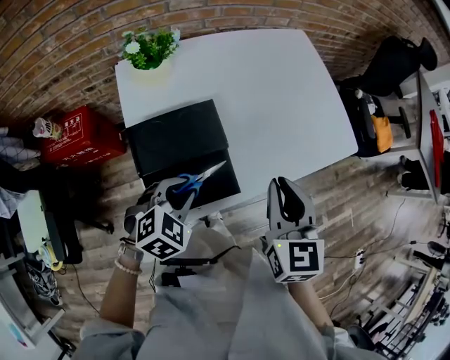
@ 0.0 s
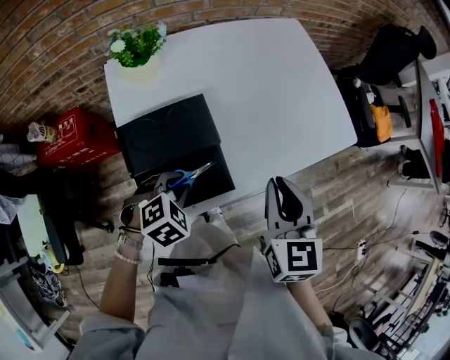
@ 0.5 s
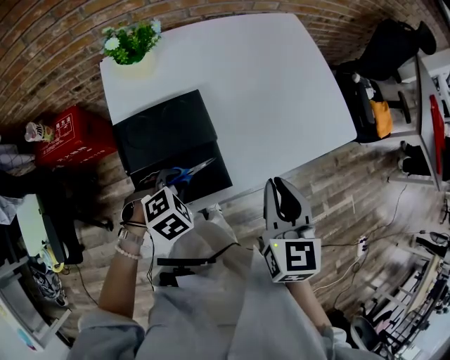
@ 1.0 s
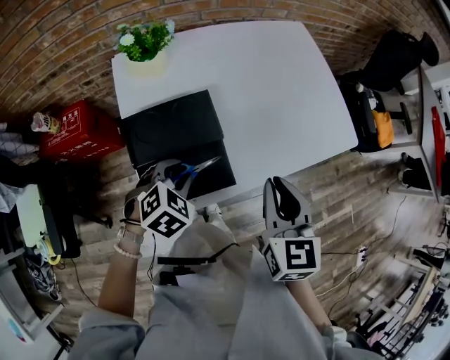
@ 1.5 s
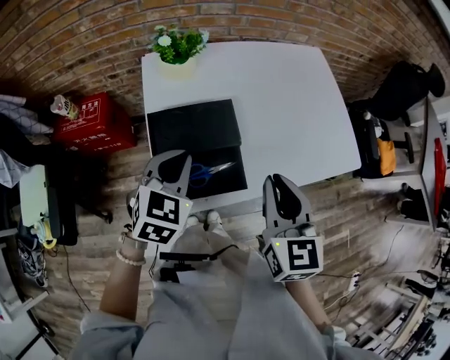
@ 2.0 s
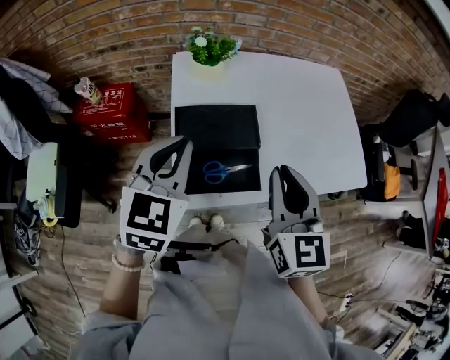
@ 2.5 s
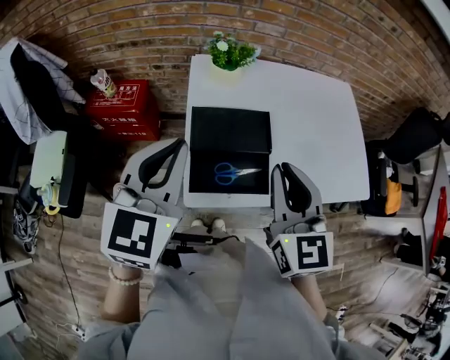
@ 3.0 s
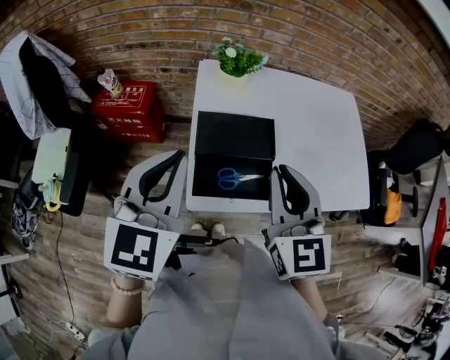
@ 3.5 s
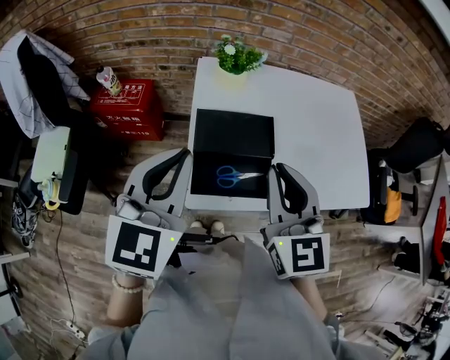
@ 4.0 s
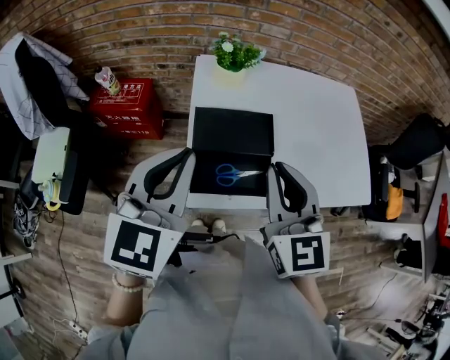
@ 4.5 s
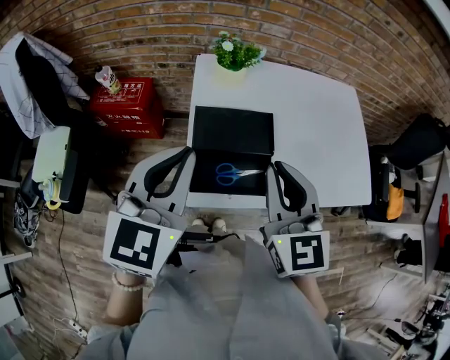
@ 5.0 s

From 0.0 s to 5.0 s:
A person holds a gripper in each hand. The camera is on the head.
From 0.0 s to 2.5 s: The left gripper goes some 20 cm upward, and tilts its fingers roughly 30 degrees upward. The right gripper shifts by roughly 10 cm.
From 2.5 s to 5.0 s: The left gripper shifts approximately 5 cm upward. Meanwhile the right gripper heads to the left, covering approximately 5 cm.

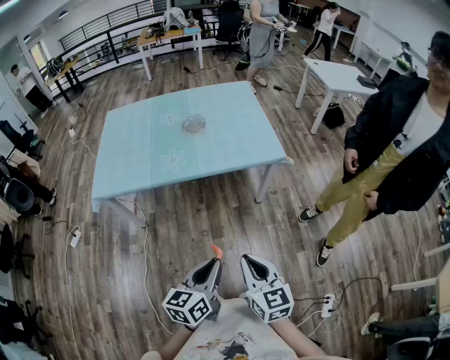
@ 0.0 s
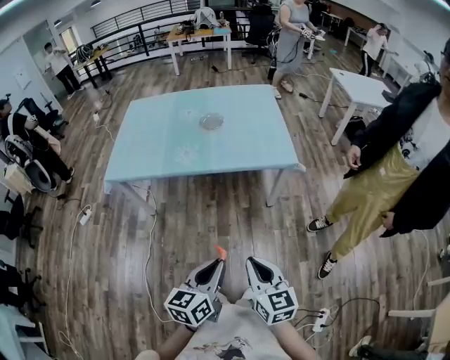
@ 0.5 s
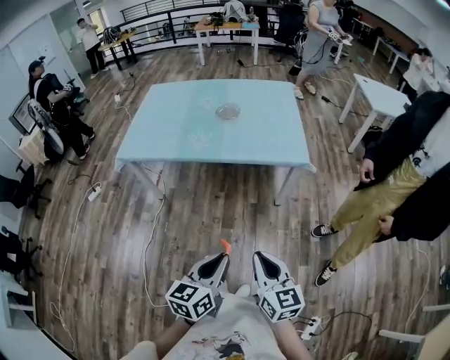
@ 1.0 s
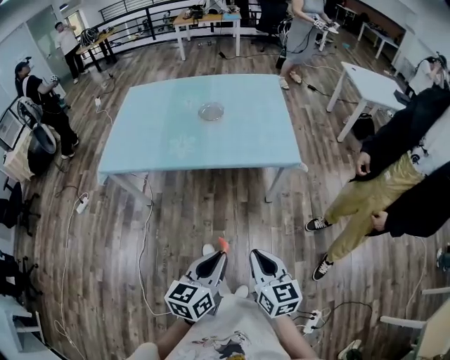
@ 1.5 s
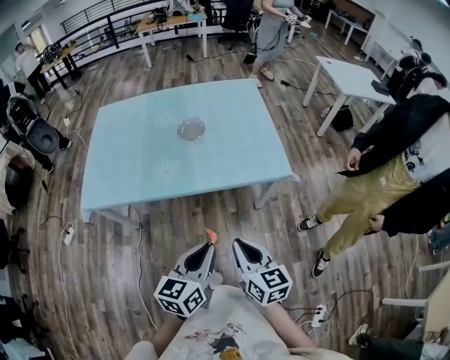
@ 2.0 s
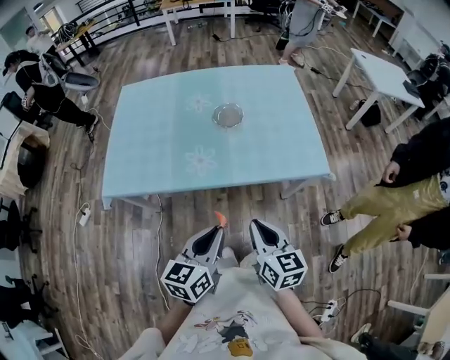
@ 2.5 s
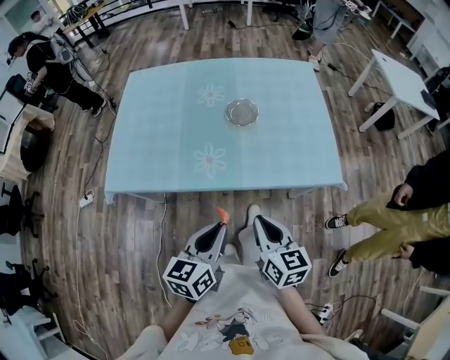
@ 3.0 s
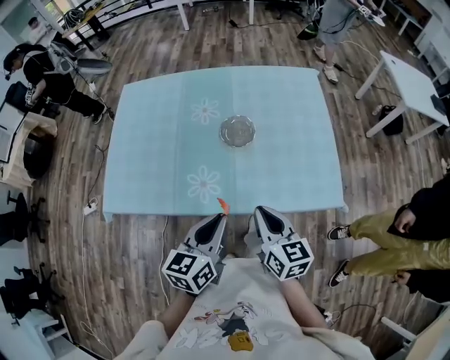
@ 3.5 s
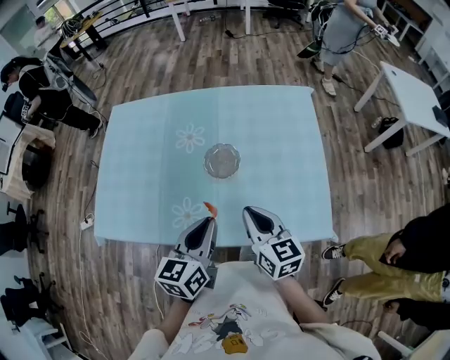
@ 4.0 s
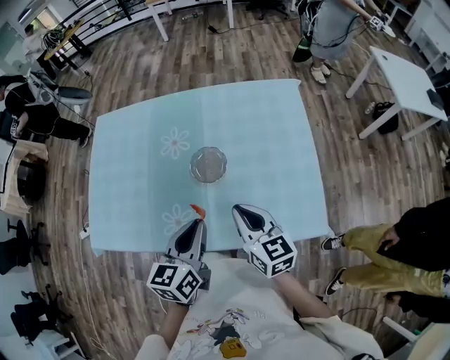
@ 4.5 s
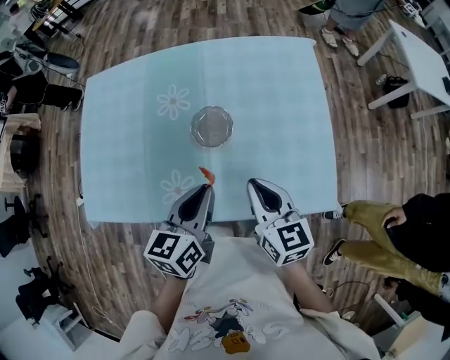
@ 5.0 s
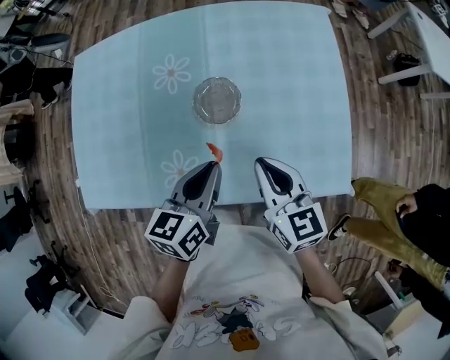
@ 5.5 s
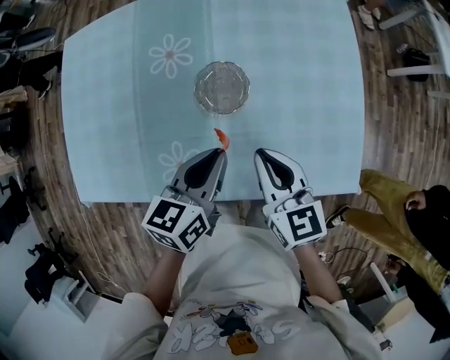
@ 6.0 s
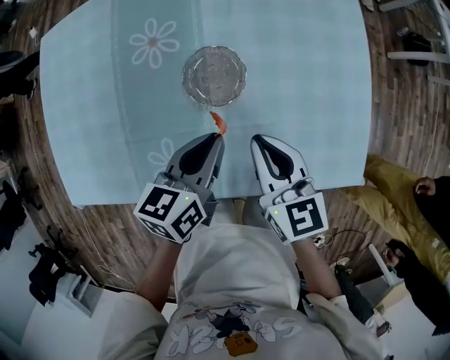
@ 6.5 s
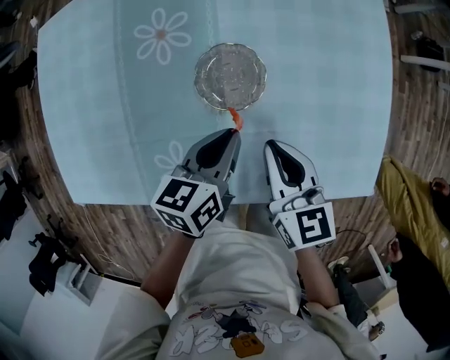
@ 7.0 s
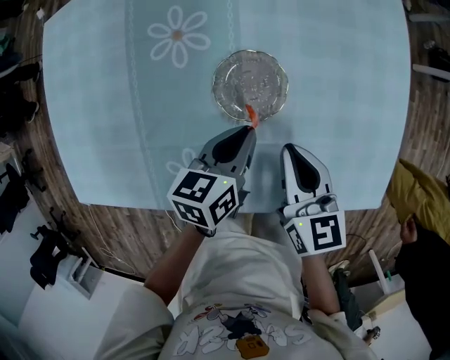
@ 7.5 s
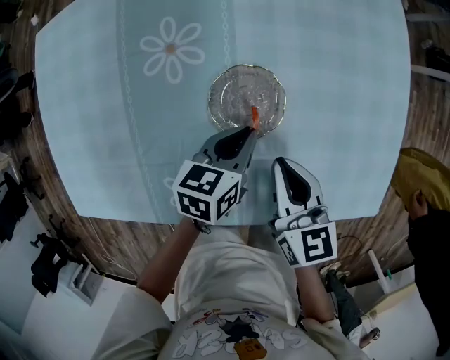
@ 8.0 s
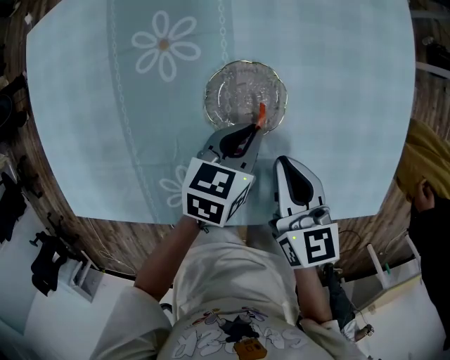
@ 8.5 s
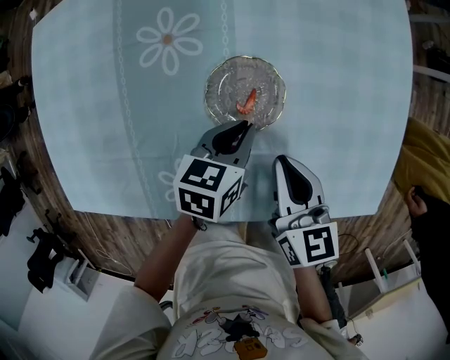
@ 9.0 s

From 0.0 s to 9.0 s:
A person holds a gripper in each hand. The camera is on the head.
From 0.0 s to 2.0 s: Both grippers travel together forward, roughly 20 cm.
From 2.0 s to 4.5 s: Both grippers are carried forward, about 40 cm.
From 4.5 s to 7.0 s: The grippers both shift downward and forward by about 20 cm. The left gripper rotates some 20 degrees.
From 7.0 s to 9.0 s: The left gripper heads downward and forward, covering approximately 10 cm.

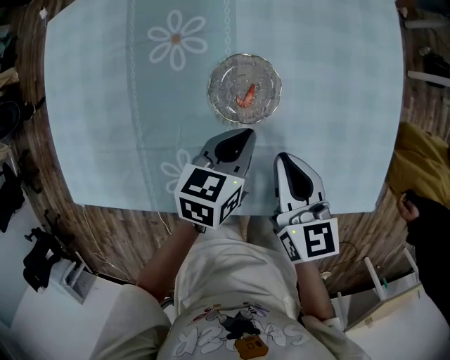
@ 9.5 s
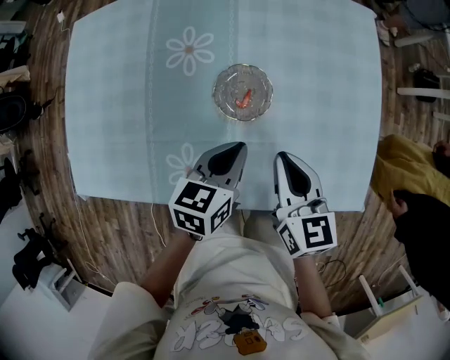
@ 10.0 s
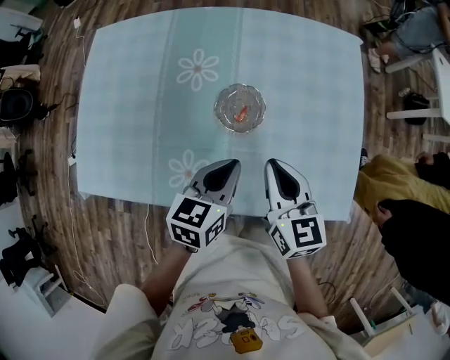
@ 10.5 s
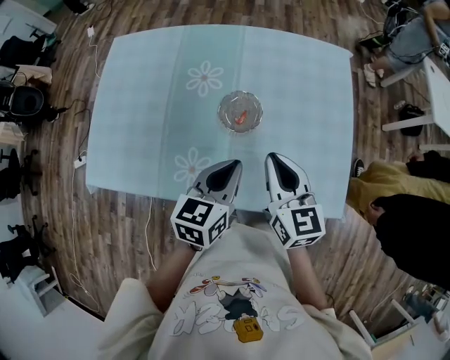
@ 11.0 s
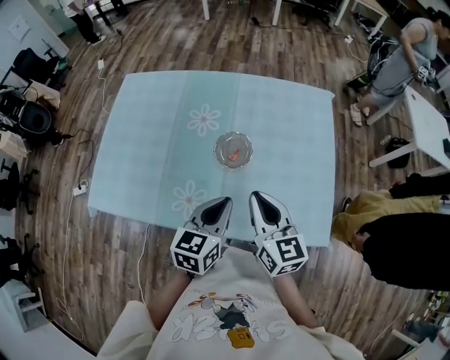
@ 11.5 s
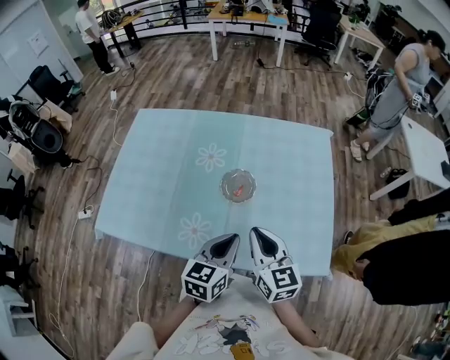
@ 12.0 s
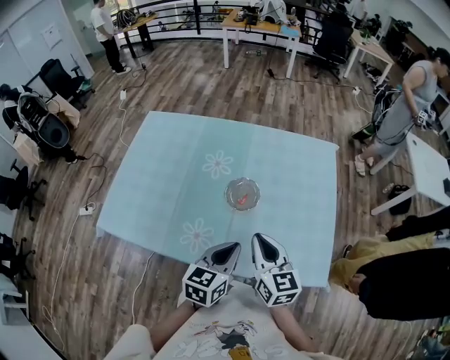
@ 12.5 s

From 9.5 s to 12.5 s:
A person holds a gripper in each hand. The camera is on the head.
From 9.5 s to 11.0 s: The left gripper goes about 25 cm upward and backward, and swivels roughly 20 degrees. Meanwhile the right gripper heads upward, covering some 15 cm.
From 11.0 s to 12.5 s: The grippers both shift backward by roughly 5 cm.

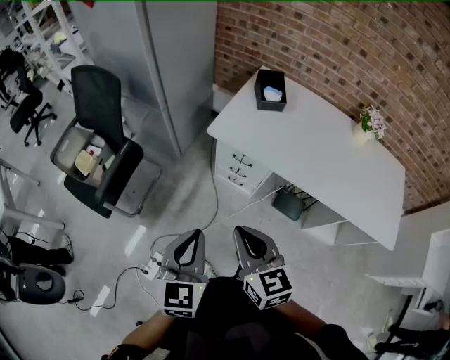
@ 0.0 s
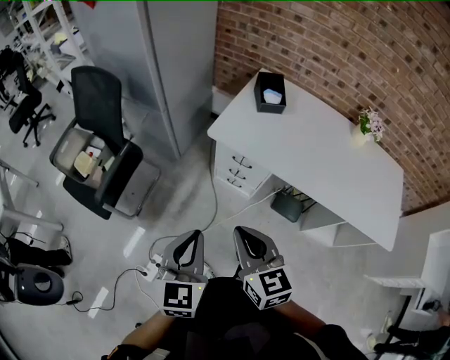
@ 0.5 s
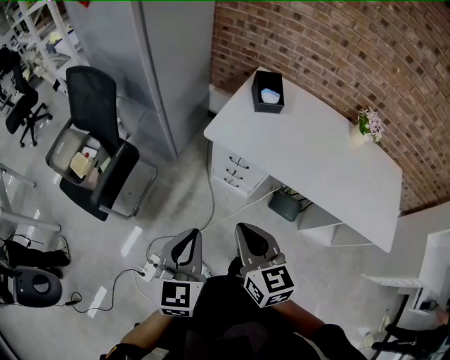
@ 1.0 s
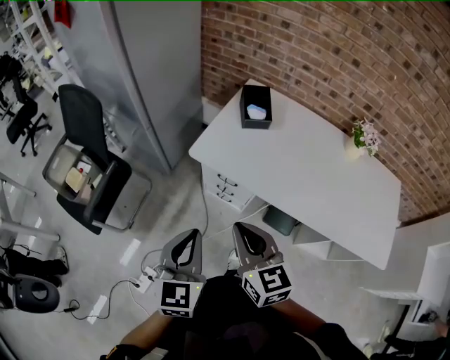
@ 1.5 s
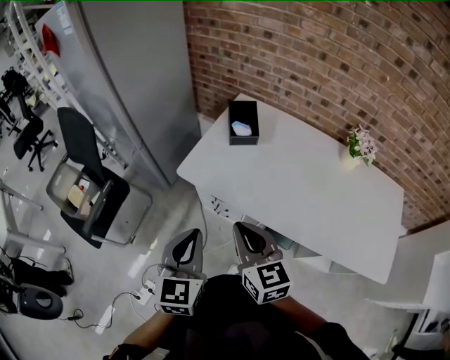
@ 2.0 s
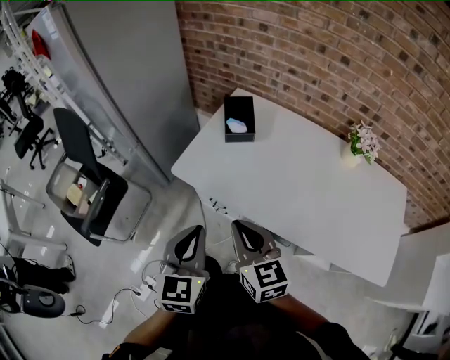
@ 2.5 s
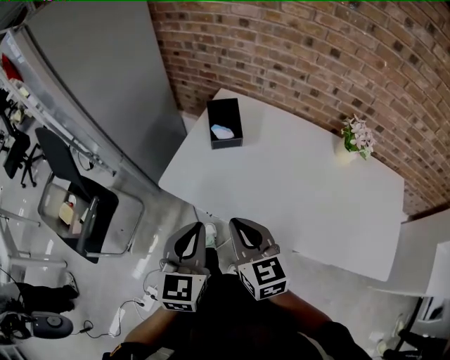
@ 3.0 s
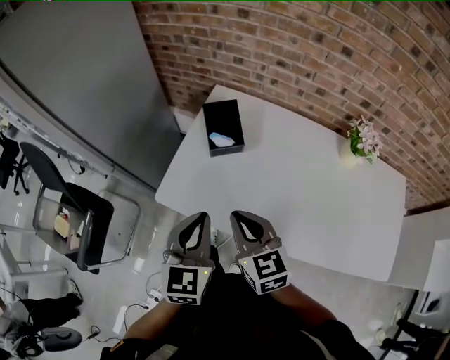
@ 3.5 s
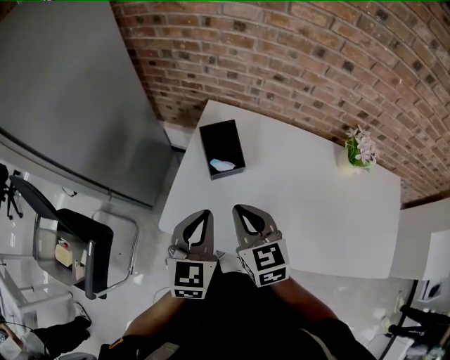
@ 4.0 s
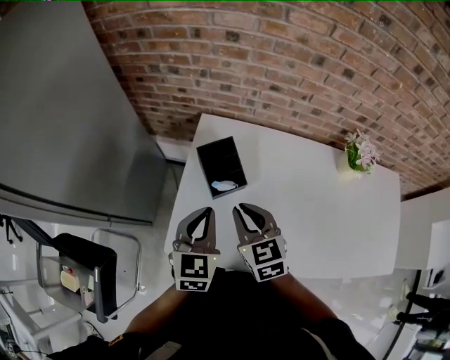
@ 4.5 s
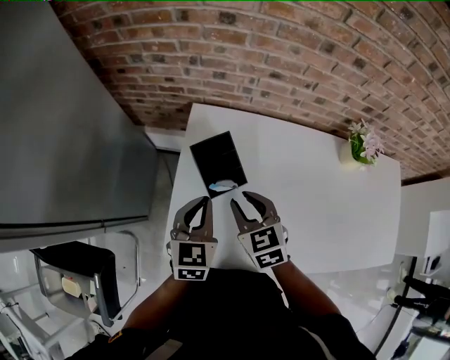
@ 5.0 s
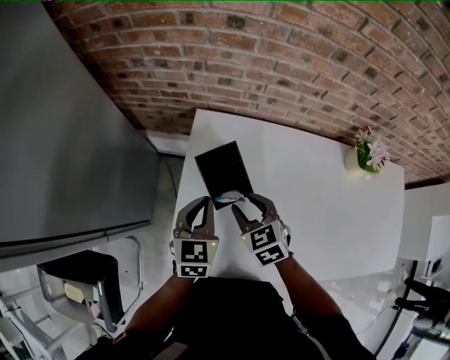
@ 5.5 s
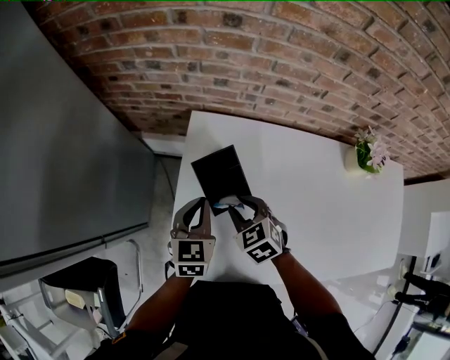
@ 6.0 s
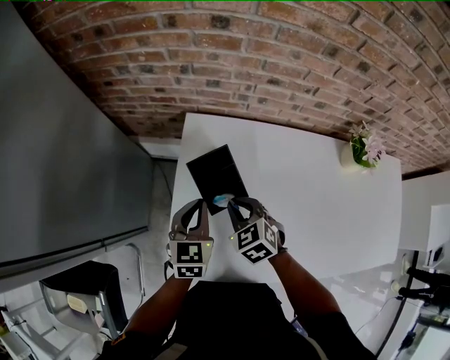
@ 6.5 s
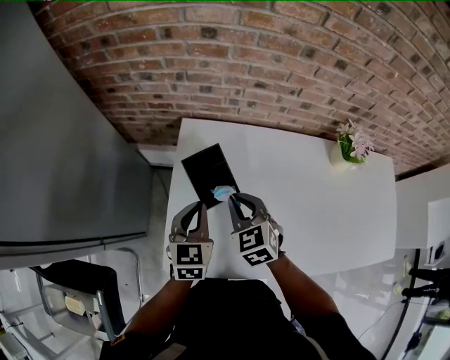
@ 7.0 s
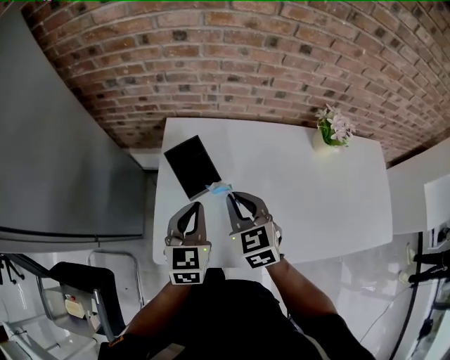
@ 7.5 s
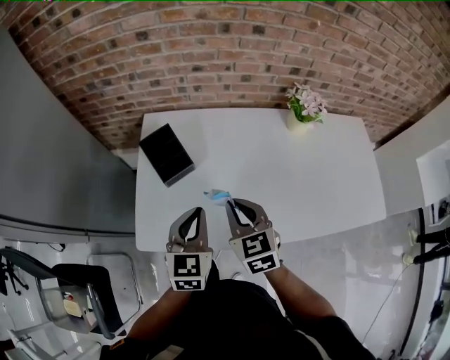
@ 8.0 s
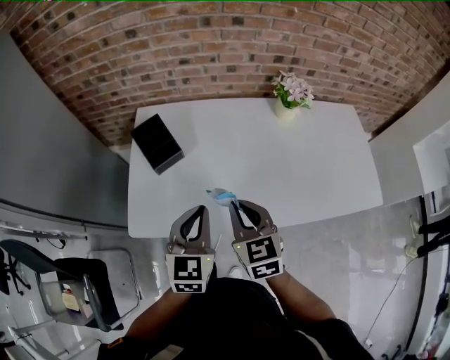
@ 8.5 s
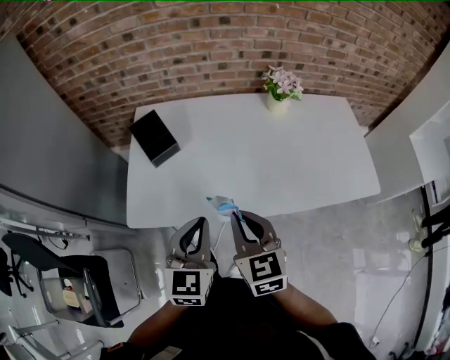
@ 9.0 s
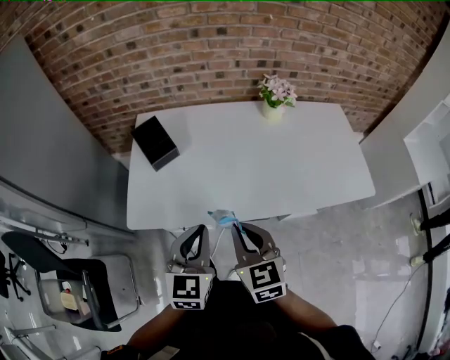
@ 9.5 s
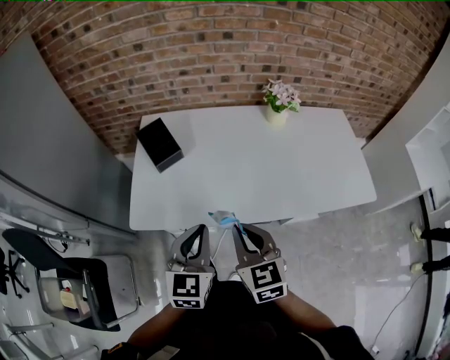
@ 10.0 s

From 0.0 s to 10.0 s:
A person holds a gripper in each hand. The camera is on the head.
From 0.0 s to 2.0 s: Both grippers move to the right and forward, about 20 cm.
From 2.0 s to 4.0 s: The two grippers go about 30 cm forward.
From 4.0 s to 6.0 s: The left gripper is displaced forward and downward by approximately 25 cm. The right gripper is displaced downward and forward by some 20 cm, changes its angle by some 20 degrees, and opens its fingers.
From 6.0 s to 8.0 s: The two grippers go roughly 25 cm backward, to the right and upward. The right gripper swivels approximately 30 degrees, and closes.
From 8.0 s to 10.0 s: The grippers both shift backward by approximately 20 cm.
